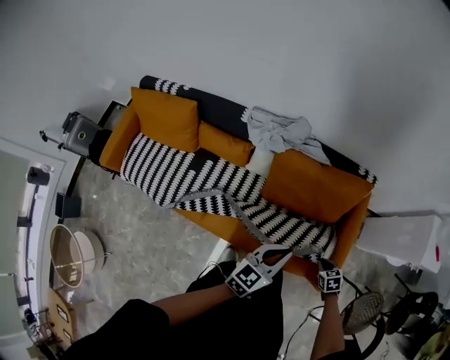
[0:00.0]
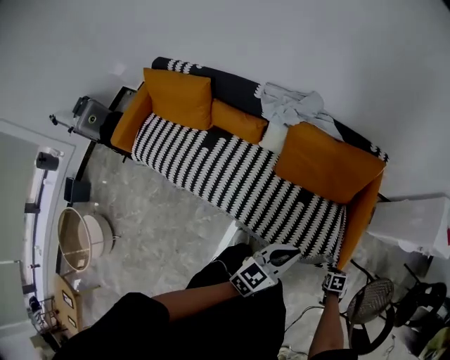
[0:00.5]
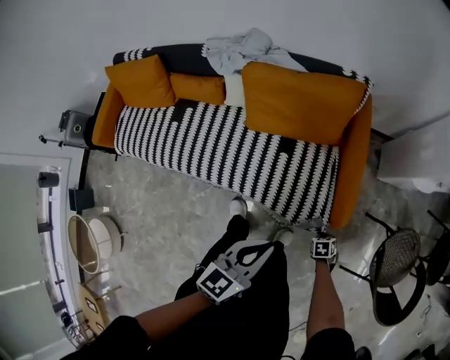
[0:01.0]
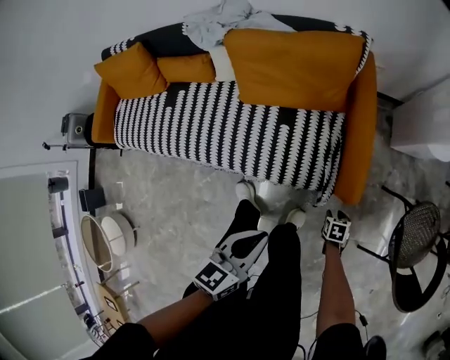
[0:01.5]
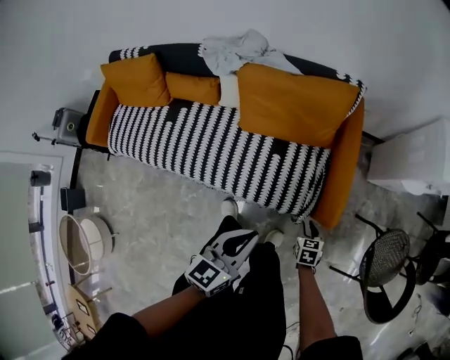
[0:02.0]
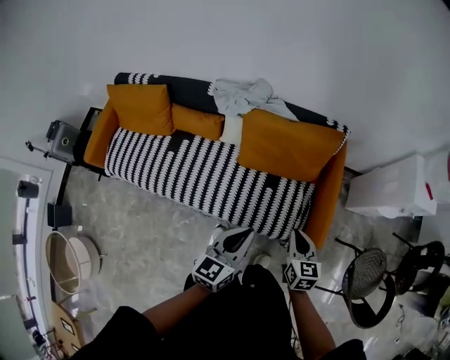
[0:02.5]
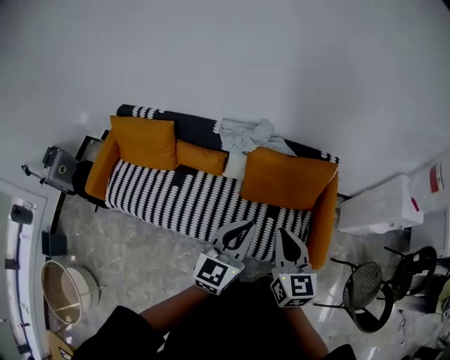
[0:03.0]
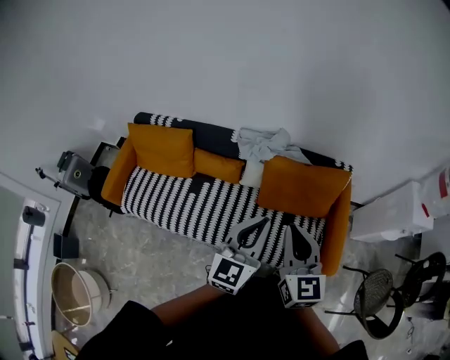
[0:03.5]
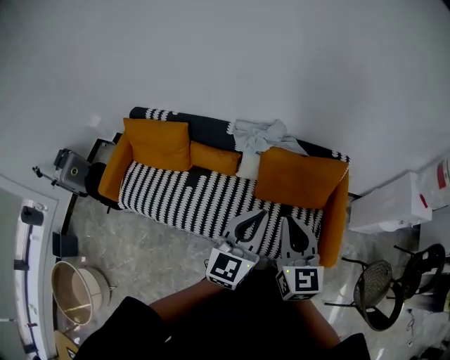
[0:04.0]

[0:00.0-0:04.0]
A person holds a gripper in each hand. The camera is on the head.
0:00.0 to 0:02.0: The left gripper ends up some 20 cm from where it was. The right gripper swivels some 20 degrees, and opens up.
0:02.0 to 0:04.0: The left gripper moves upward, to the left and forward, some 35 cm, and turns by some 30 degrees, while the right gripper shifts roughly 60 cm upward and to the left, tips its fingers upward by roughly 50 degrees, and closes up.

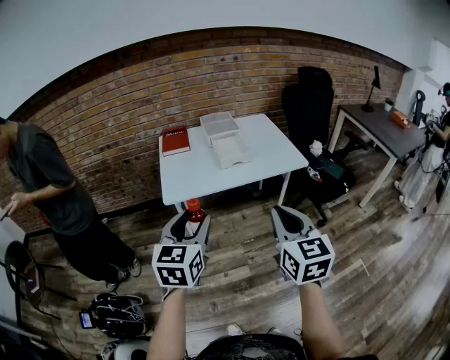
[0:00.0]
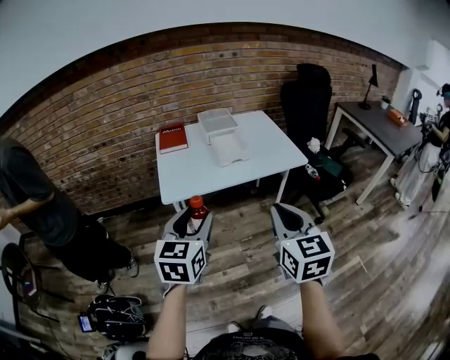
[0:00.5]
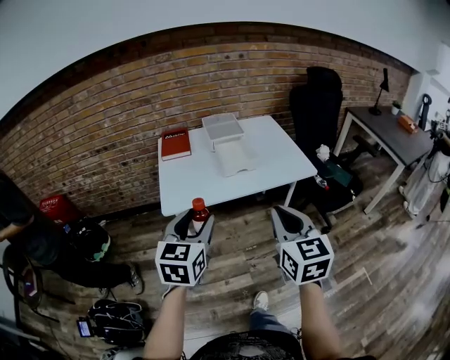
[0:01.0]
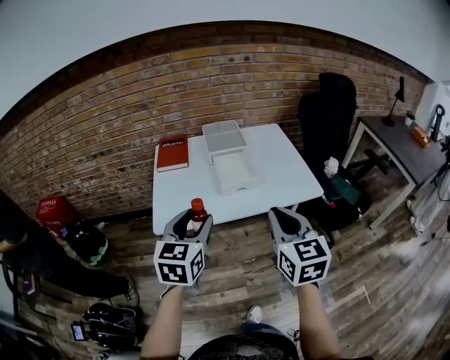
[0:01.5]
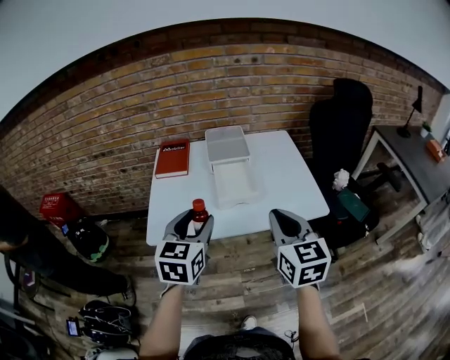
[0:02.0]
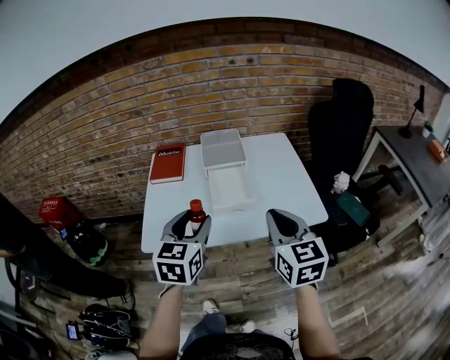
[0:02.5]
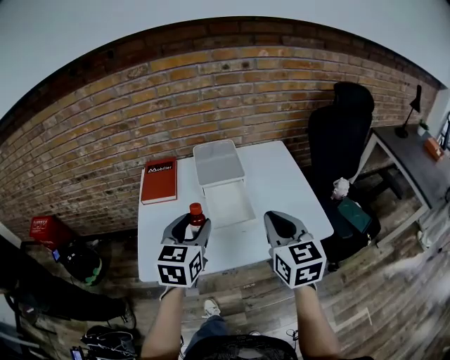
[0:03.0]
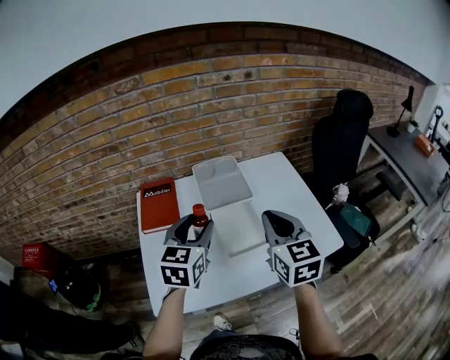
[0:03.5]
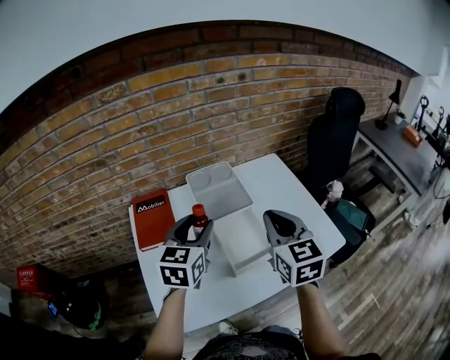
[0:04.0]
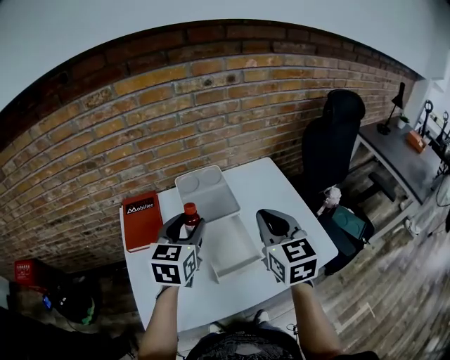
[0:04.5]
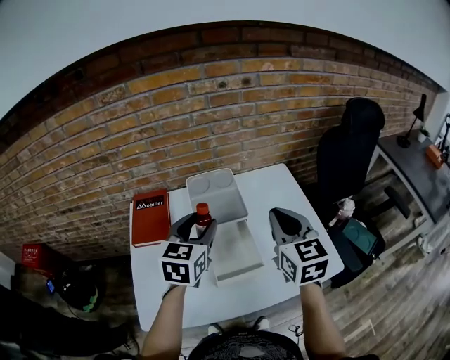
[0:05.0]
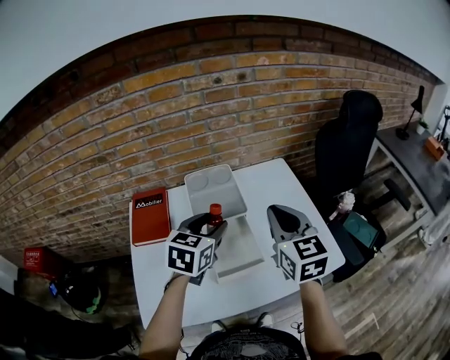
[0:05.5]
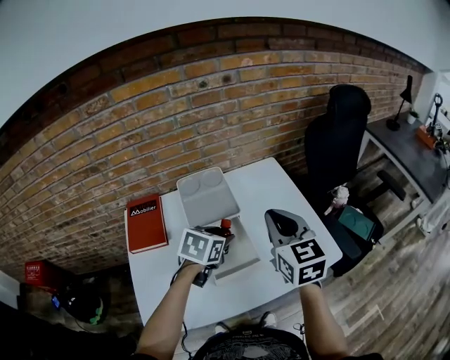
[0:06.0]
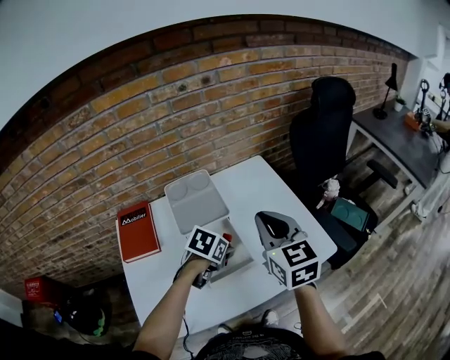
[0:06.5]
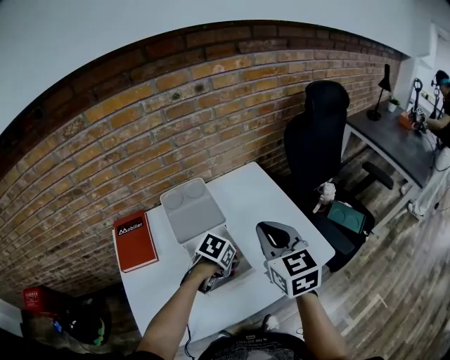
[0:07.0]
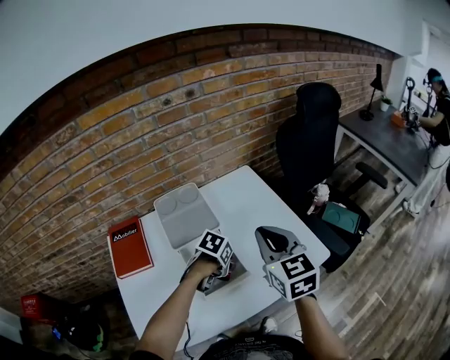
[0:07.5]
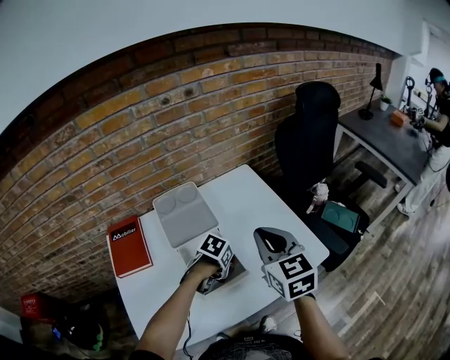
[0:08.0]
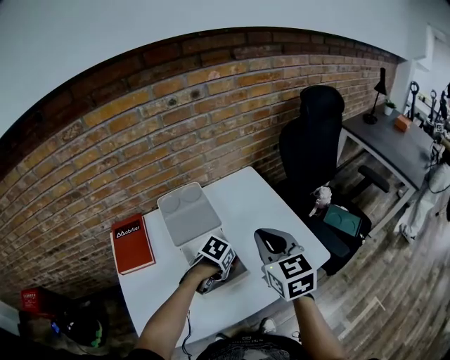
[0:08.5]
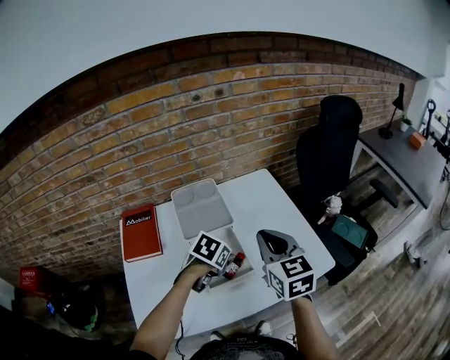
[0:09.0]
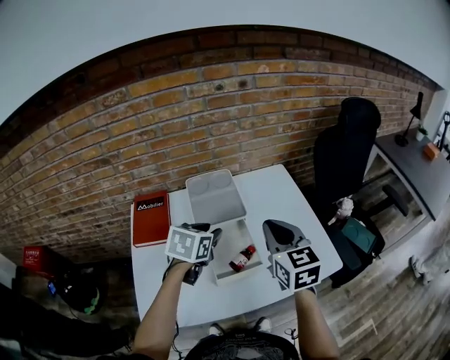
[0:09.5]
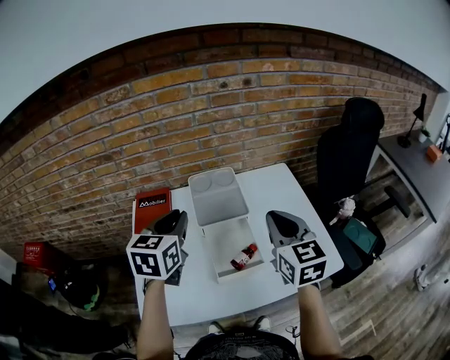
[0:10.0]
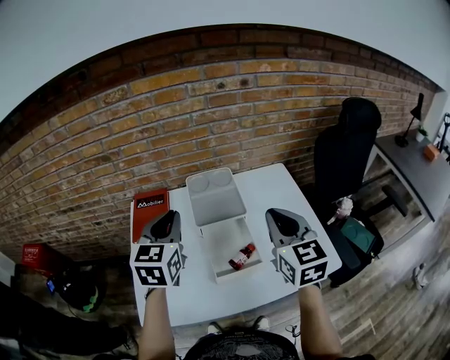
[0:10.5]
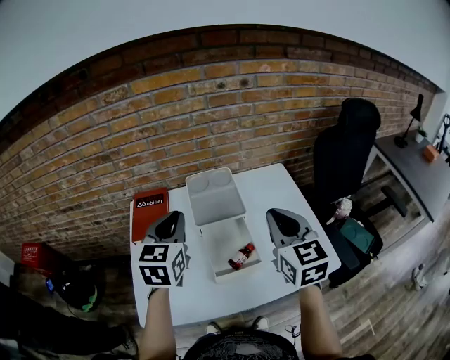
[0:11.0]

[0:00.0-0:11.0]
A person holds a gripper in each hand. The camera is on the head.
0:00.0 to 0:02.0: The grippers both shift forward by about 30 cm.
0:02.0 to 0:03.5: The two grippers go about 25 cm forward.
0:03.5 to 0:05.5: The left gripper goes about 10 cm forward and to the right. Meanwhile the right gripper heads forward, covering roughly 10 cm.
0:05.5 to 0:07.5: The left gripper goes approximately 20 cm downward, and tilts its fingers about 40 degrees downward, while the right gripper shifts by about 5 cm.
0:07.5 to 0:09.0: The left gripper travels upward by about 5 cm.
0:09.0 to 0:11.0: The left gripper moves upward, approximately 20 cm, points its fingers some 40 degrees further upward, and closes its fingers. The right gripper goes some 5 cm upward.

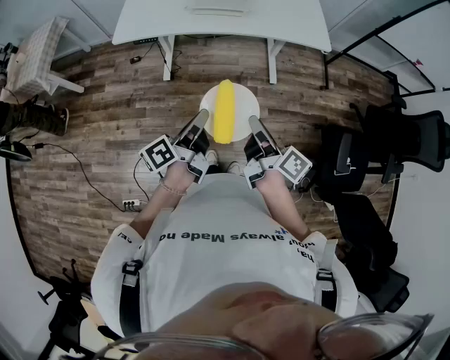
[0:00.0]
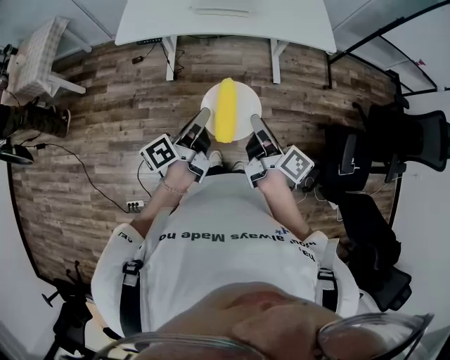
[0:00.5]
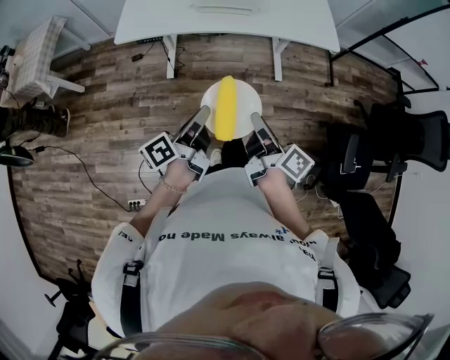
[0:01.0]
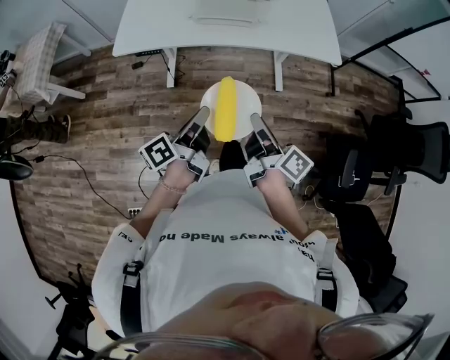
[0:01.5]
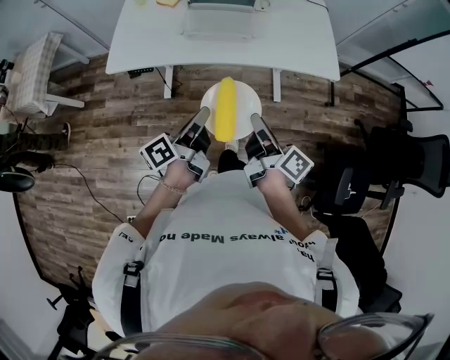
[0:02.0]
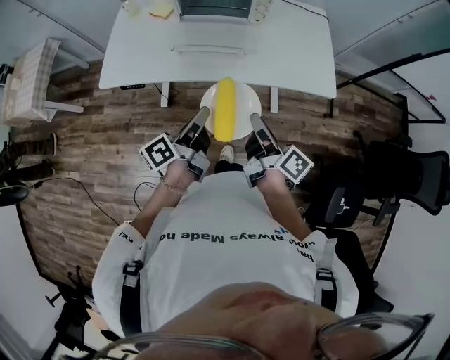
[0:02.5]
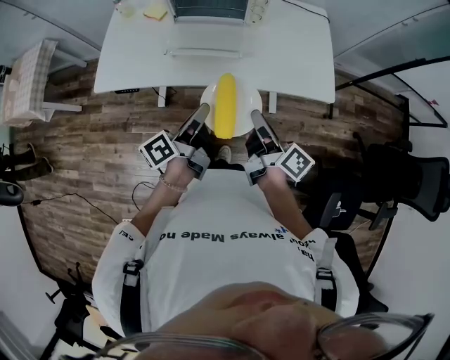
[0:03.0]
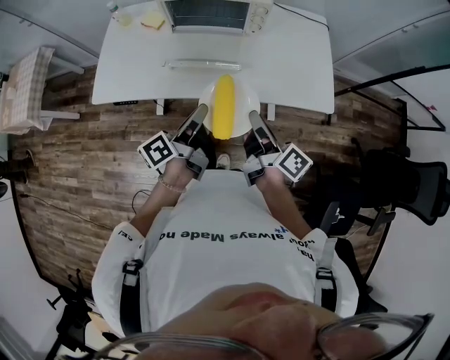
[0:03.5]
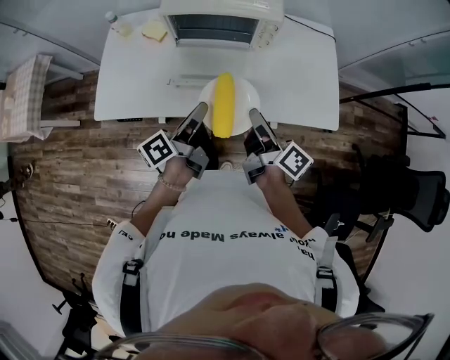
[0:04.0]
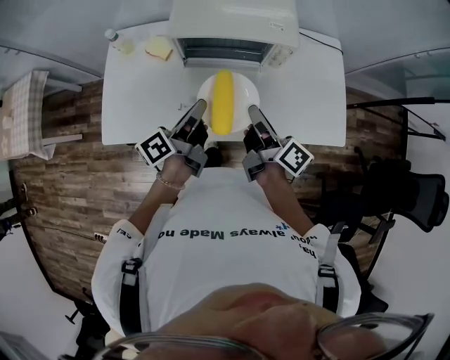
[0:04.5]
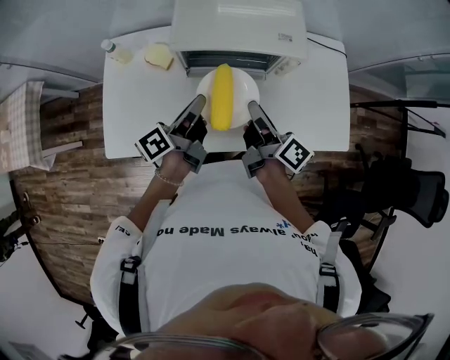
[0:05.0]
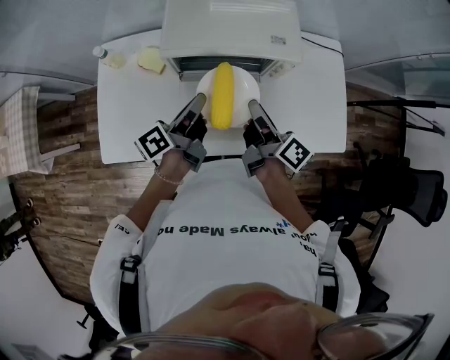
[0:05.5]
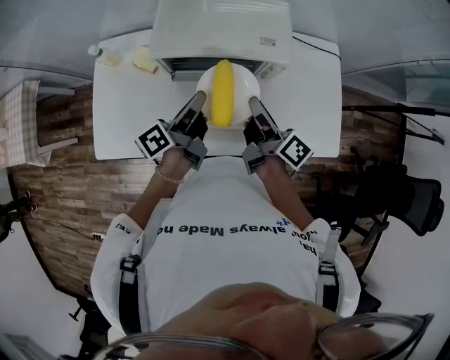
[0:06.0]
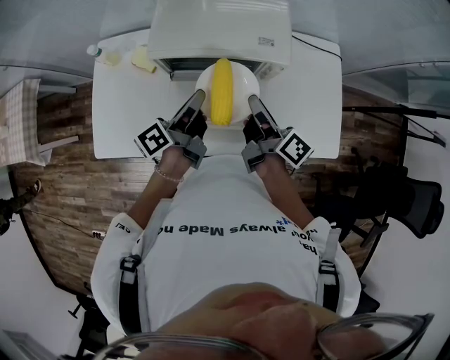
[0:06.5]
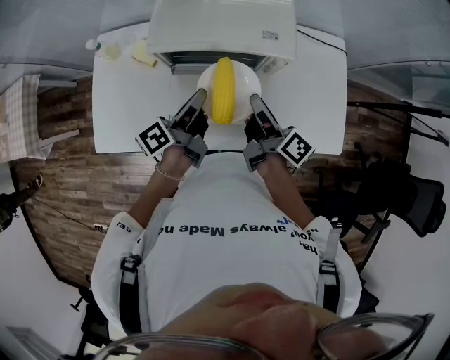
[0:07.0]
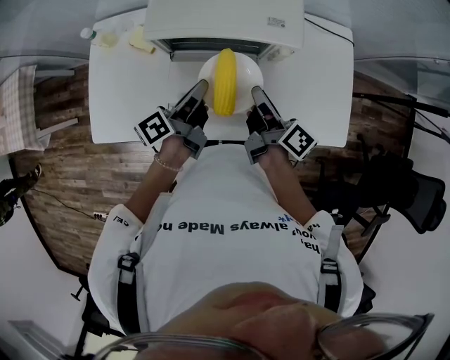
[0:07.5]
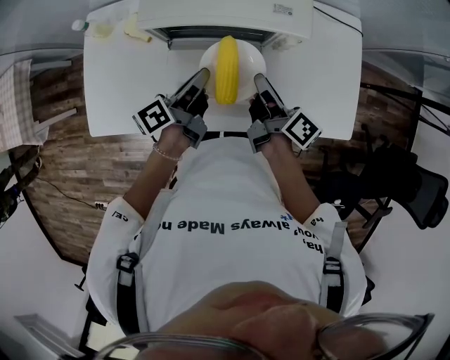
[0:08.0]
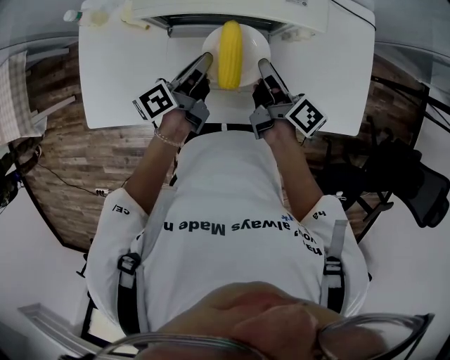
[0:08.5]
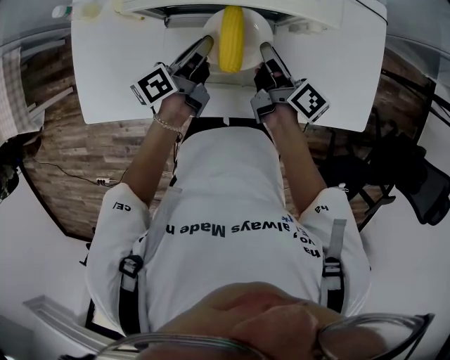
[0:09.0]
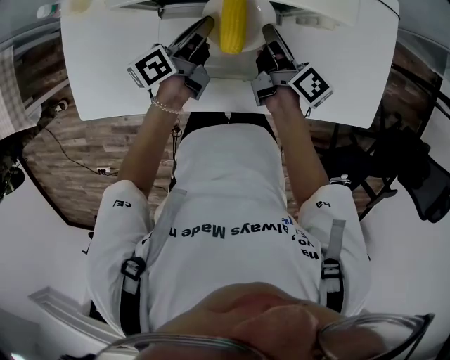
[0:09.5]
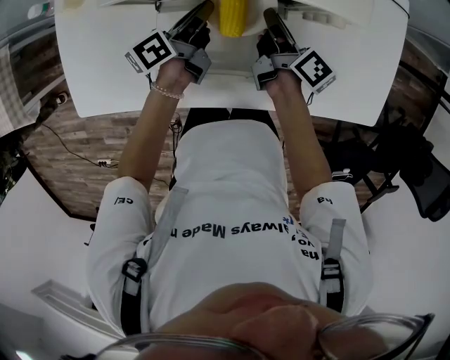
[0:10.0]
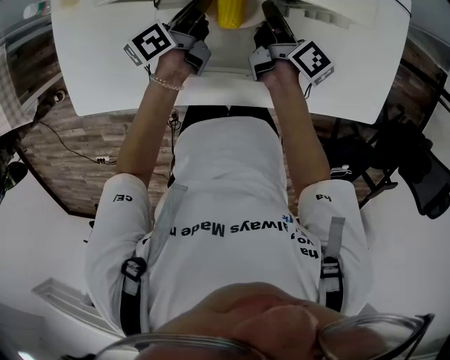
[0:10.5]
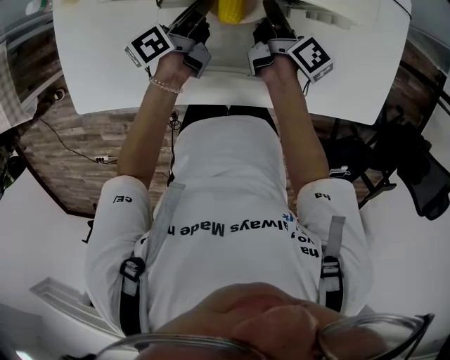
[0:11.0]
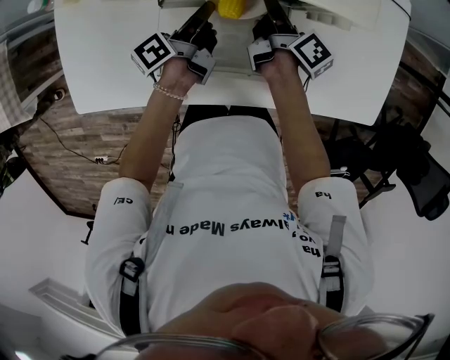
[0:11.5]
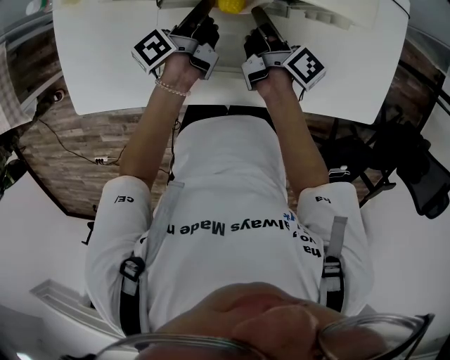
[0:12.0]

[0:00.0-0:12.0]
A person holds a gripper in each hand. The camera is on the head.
0:00.0 to 0:02.0: Both grippers travel together forward, approximately 20 cm.
0:02.0 to 0:04.0: Both grippers move forward, approximately 30 cm.
0:04.0 to 0:06.0: The two grippers go roughly 20 cm forward.
0:06.0 to 0:08.0: Both grippers move downward, about 5 cm.
0:08.0 to 0:10.0: Both grippers move downward and forward, some 20 cm.
0:10.0 to 0:12.0: The grippers make only small movements.
